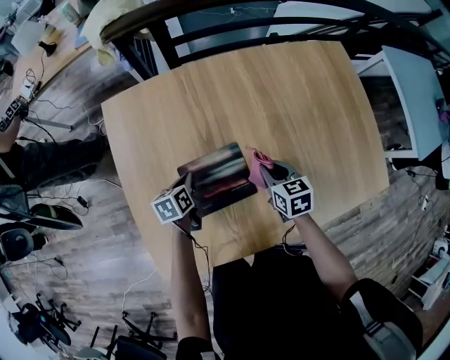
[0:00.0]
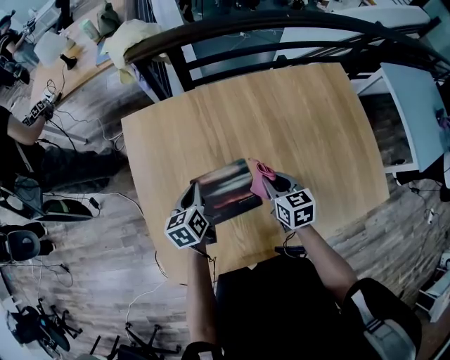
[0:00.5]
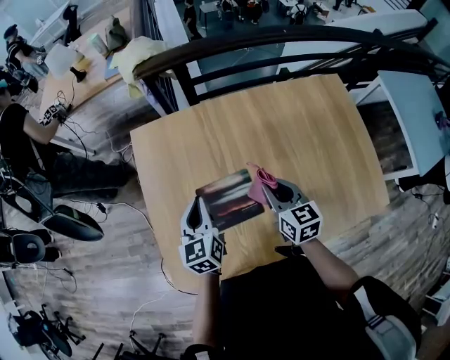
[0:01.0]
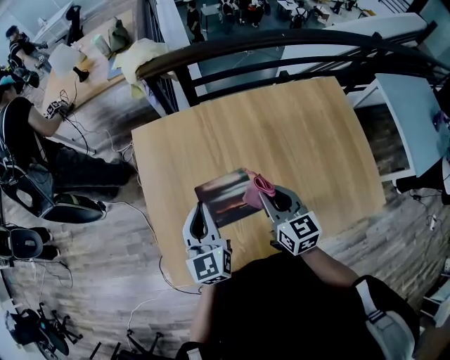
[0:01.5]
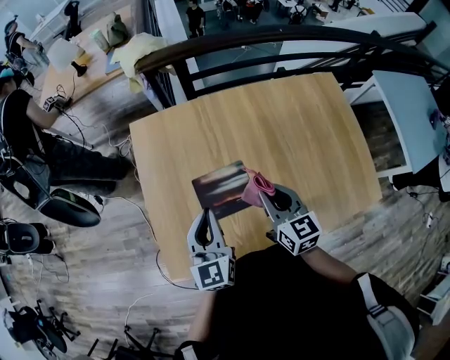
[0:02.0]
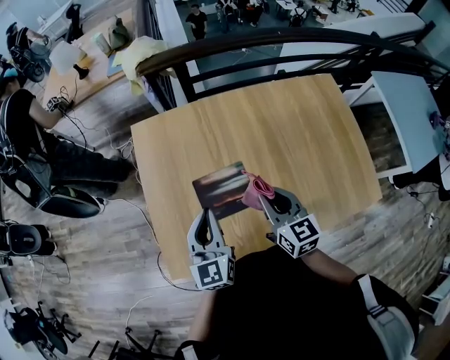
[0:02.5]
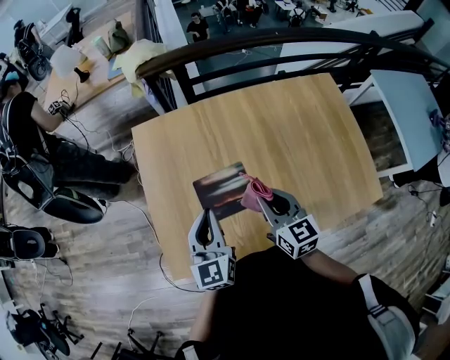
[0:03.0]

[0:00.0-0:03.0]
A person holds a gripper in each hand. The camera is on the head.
0:00.0 to 0:01.5: The right gripper moves upward, roughly 20 cm, and swivels some 20 degrees. Meanwhile the left gripper goes some 30 cm upward, and tilts its fingers some 40 degrees upward.
0:01.5 to 0:03.0: The left gripper moves backward, some 5 cm.

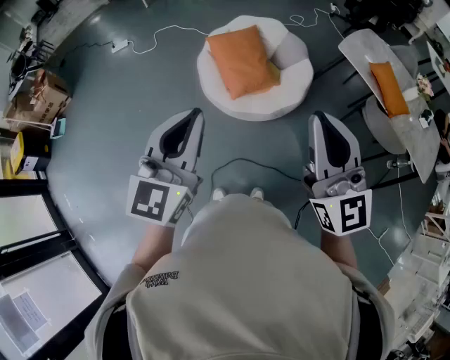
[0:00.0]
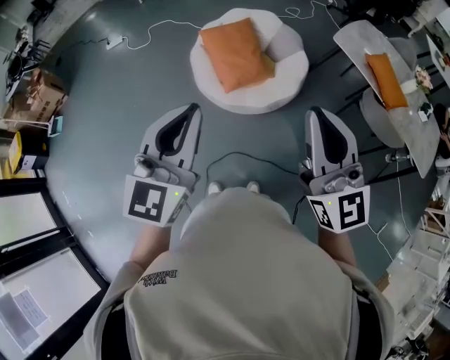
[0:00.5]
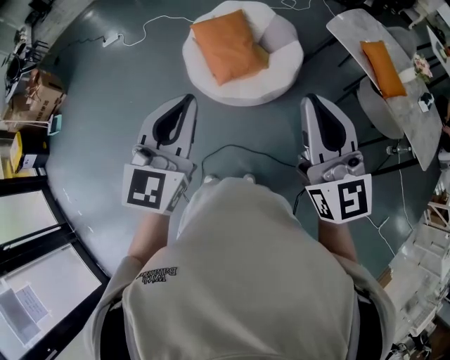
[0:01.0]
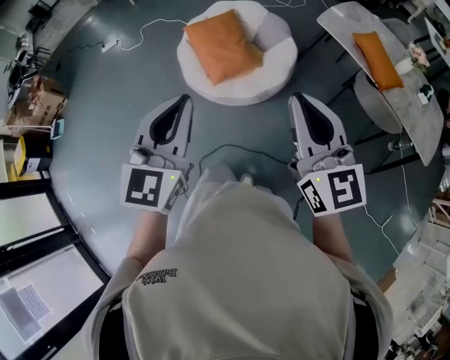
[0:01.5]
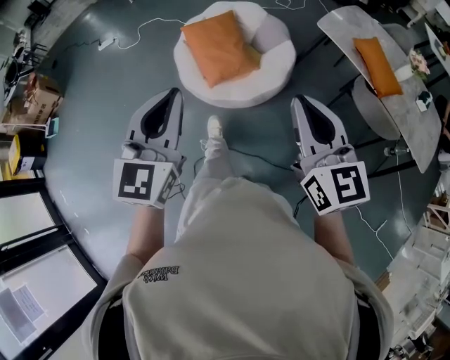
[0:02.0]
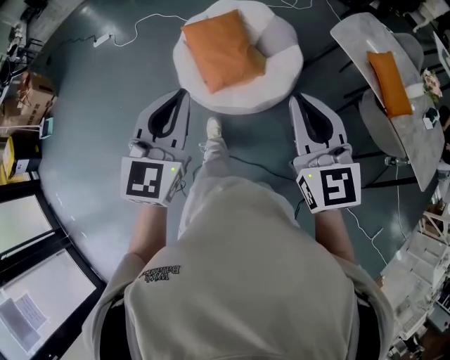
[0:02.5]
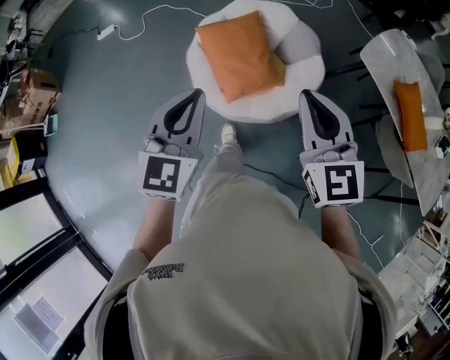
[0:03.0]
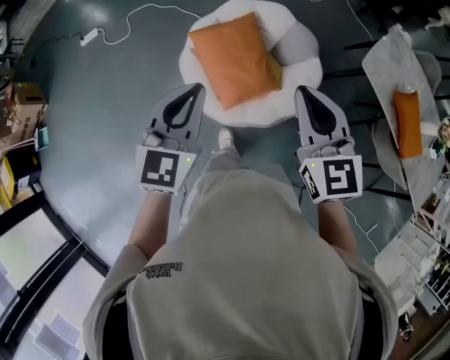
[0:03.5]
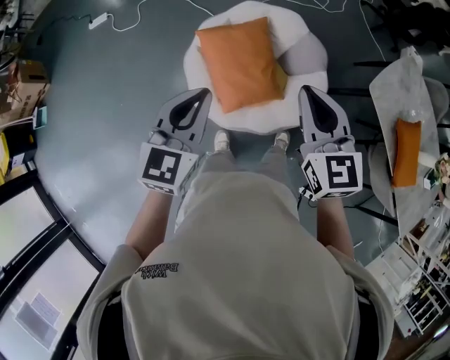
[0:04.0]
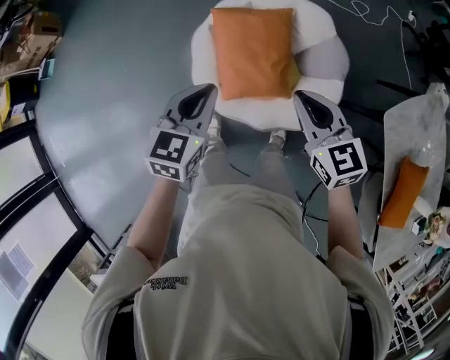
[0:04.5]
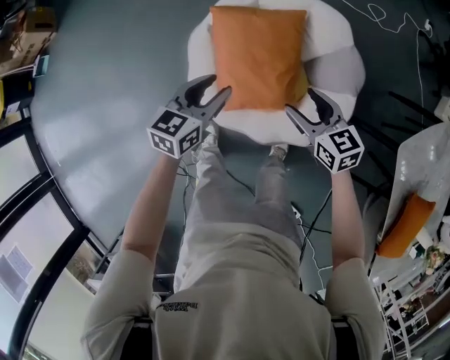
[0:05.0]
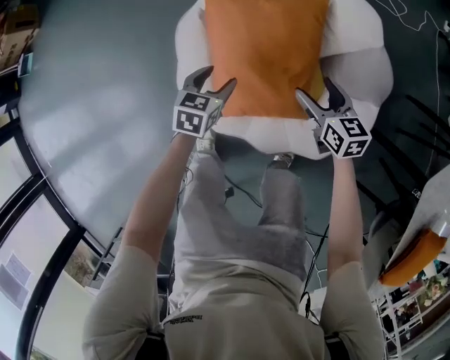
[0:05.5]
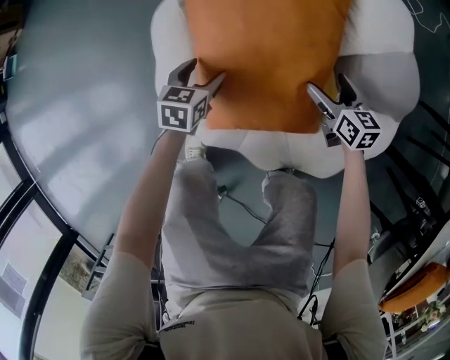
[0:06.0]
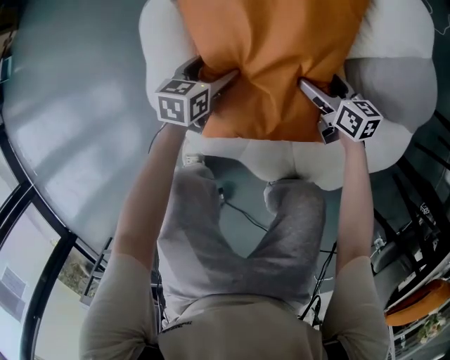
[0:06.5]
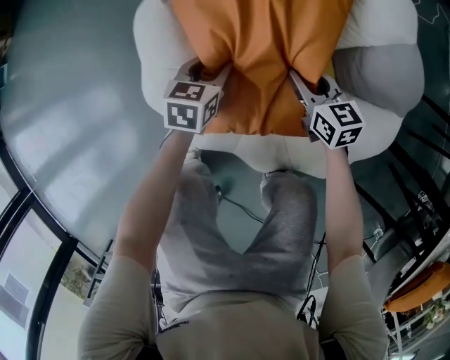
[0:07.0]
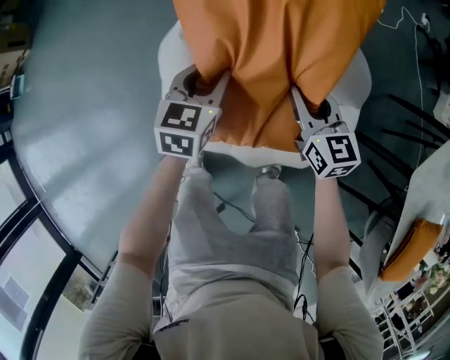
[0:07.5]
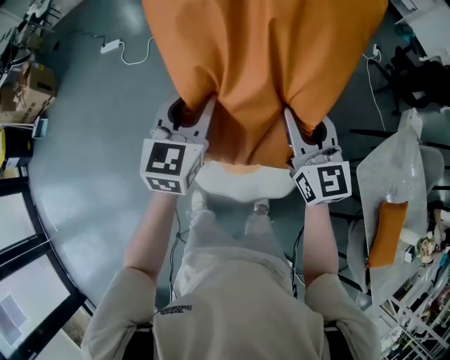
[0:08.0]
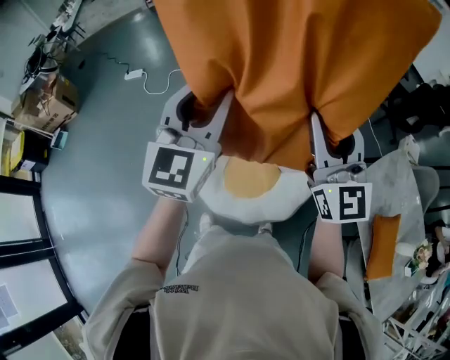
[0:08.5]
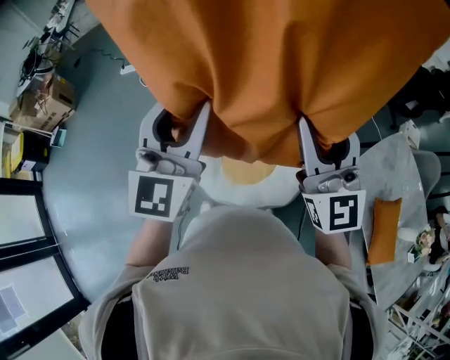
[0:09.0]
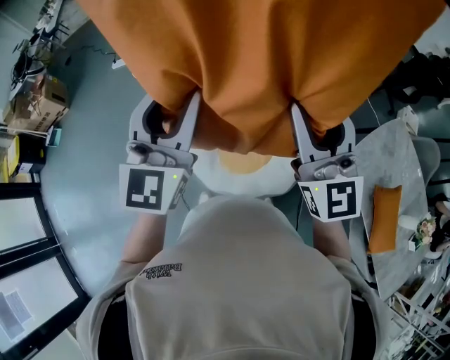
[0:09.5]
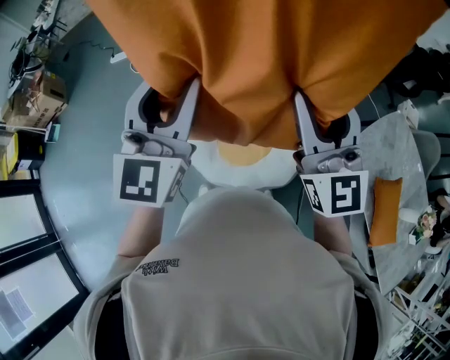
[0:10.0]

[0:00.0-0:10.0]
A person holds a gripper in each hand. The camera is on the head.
0:00.0 to 0:02.0: The left gripper shifts about 15 cm to the right, while the right gripper shifts about 20 cm to the right and downward.
0:02.0 to 0:04.0: The pair of grippers is taken forward, approximately 50 cm.
0:04.0 to 0:06.0: Both grippers travel together downward, approximately 70 cm. The left gripper tips its fingers downward by approximately 30 degrees, and opens up; the right gripper changes its angle by about 40 degrees, and opens its fingers.
0:06.0 to 0:08.0: Both grippers move upward, about 70 cm. The right gripper angles its fingers upward, by some 30 degrees, and closes its fingers. The left gripper tilts its fingers roughly 40 degrees upward, and closes its fingers.
0:08.0 to 0:10.0: The two grippers go roughly 25 cm upward and backward. The left gripper turns by some 20 degrees; the right gripper swivels about 20 degrees.

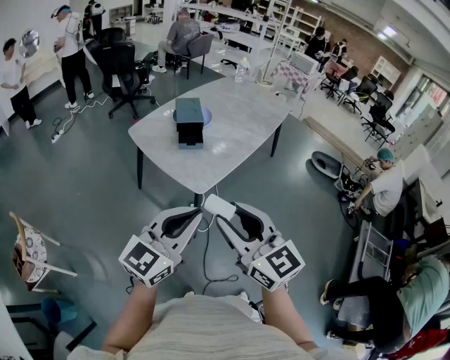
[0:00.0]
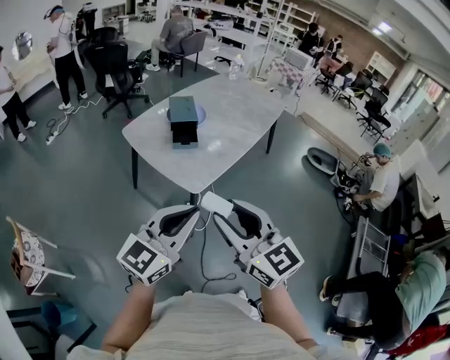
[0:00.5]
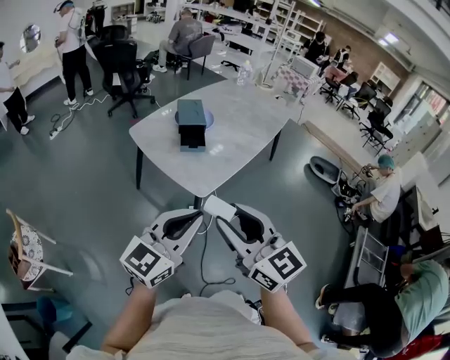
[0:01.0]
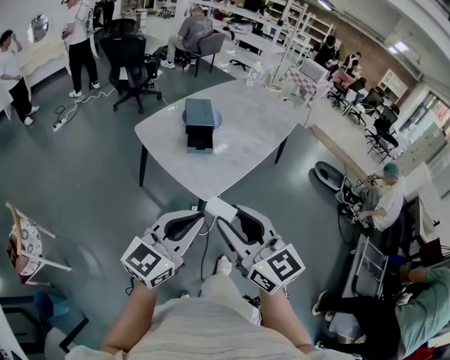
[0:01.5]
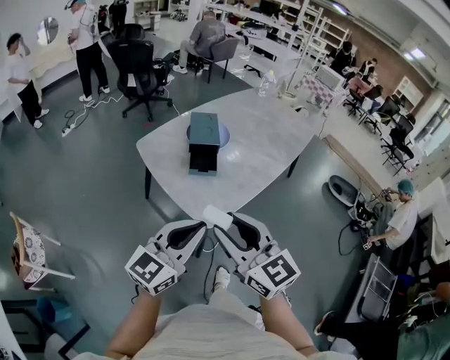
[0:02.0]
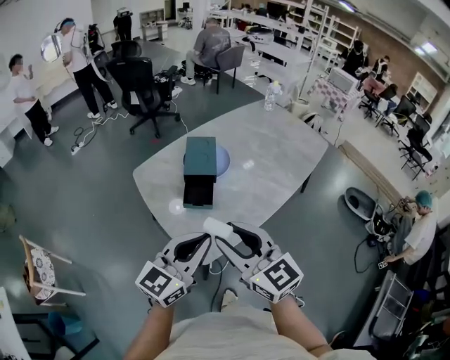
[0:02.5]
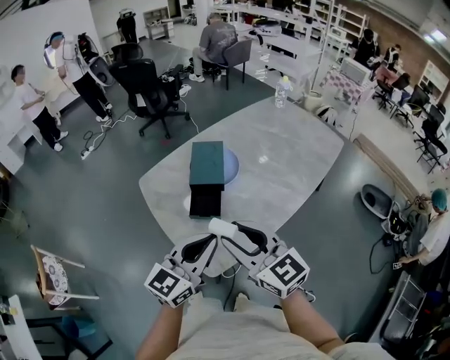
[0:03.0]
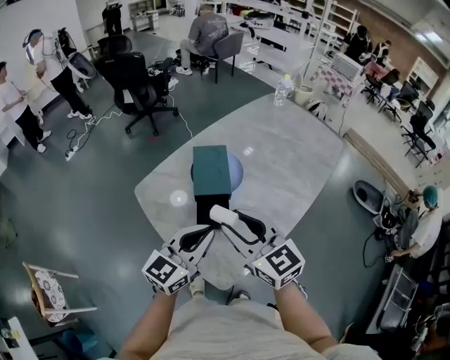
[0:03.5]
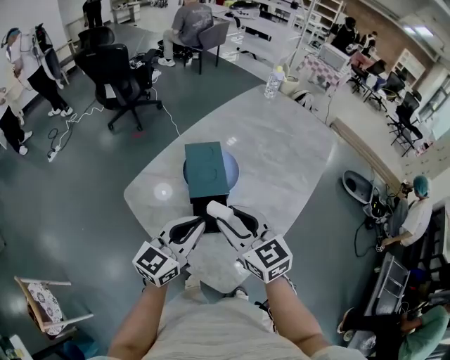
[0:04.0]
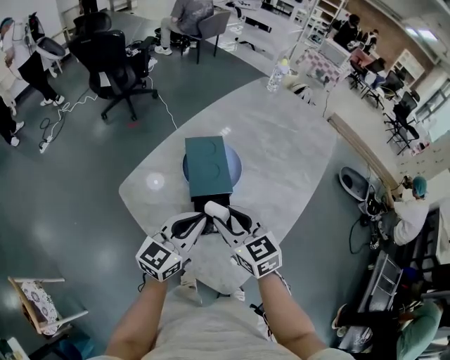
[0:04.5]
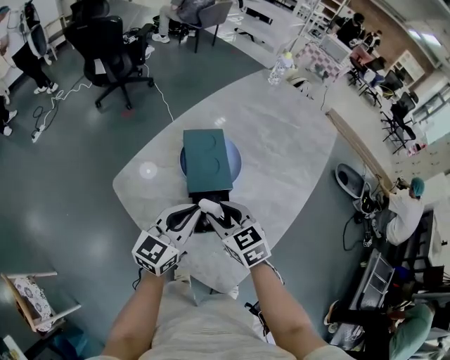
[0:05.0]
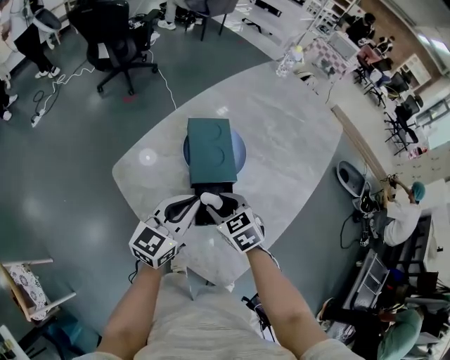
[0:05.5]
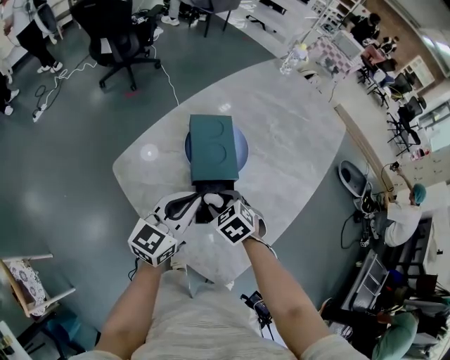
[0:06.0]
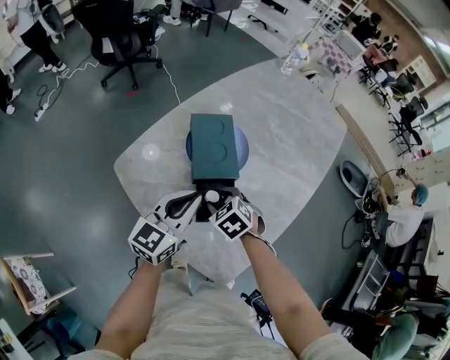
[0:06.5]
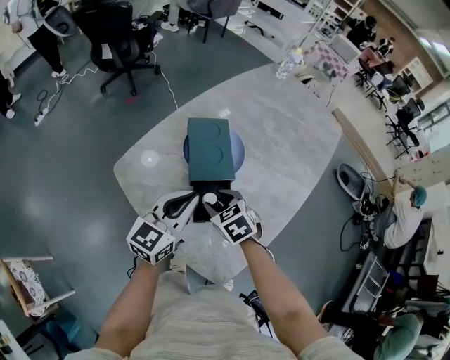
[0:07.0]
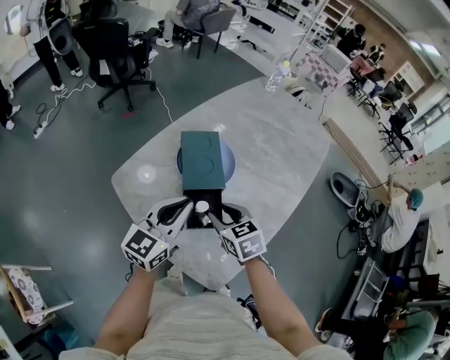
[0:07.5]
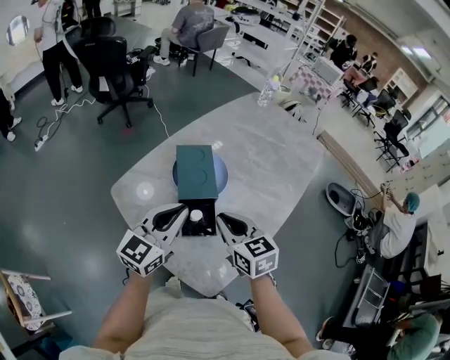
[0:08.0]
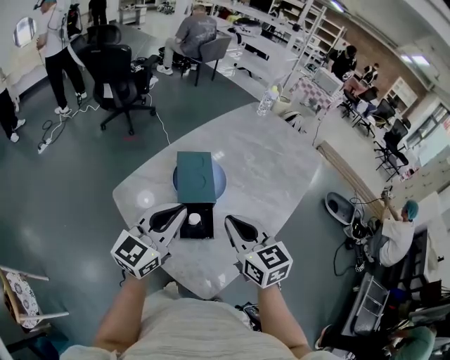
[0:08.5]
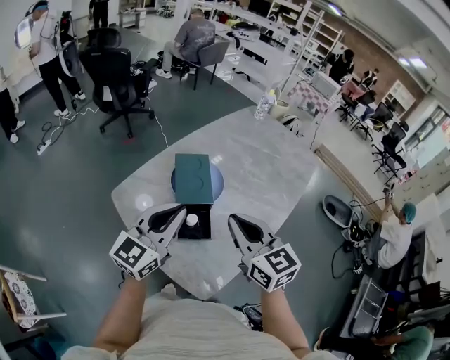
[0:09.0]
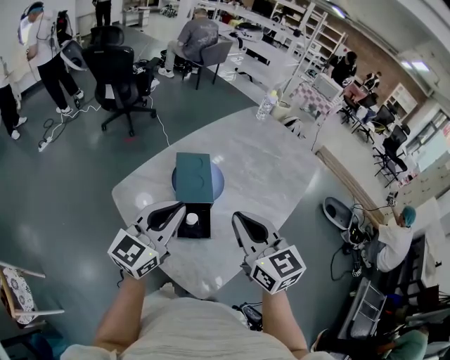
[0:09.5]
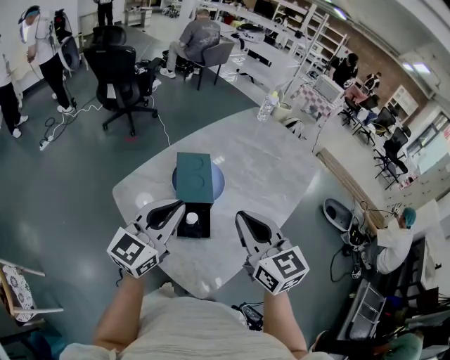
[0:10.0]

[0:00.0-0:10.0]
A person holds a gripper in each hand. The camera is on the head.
0:00.0 to 0:02.0: Both grippers travel together forward, roughly 15 cm.
0:02.0 to 0:04.0: The grippers both shift forward by approximately 35 cm.
0:04.0 to 0:06.0: The left gripper shifts approximately 10 cm downward and forward. The right gripper heads downward, covering approximately 20 cm, and angles its fingers downward, by approximately 40 degrees.
0:06.0 to 0:08.0: The right gripper shifts approximately 15 cm upward, points its fingers roughly 30 degrees further upward, and closes. The left gripper is displaced upward by roughly 10 cm.
0:08.0 to 0:10.0: The left gripper is displaced upward by roughly 5 cm. Meanwhile the right gripper moves upward, approximately 15 cm.

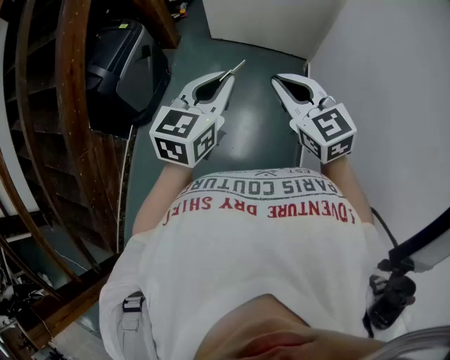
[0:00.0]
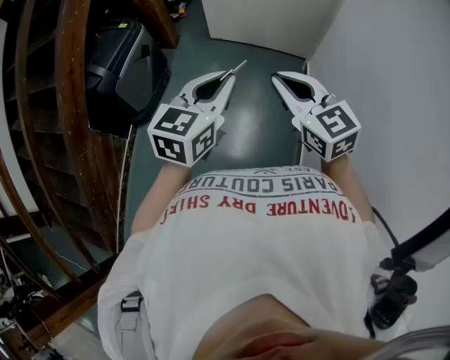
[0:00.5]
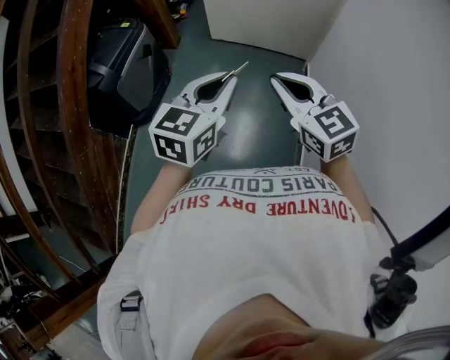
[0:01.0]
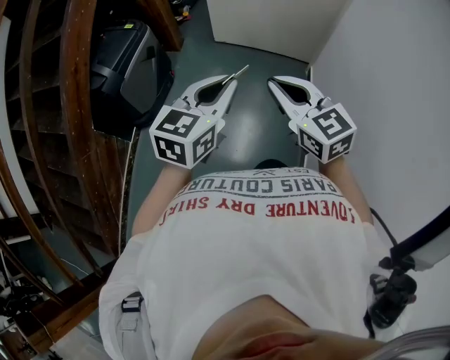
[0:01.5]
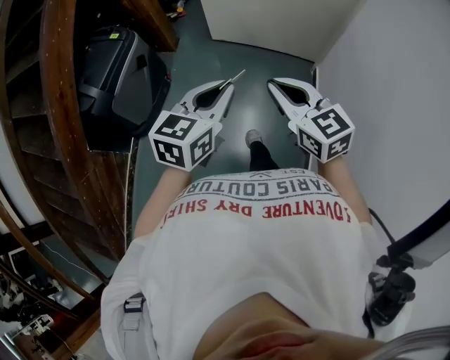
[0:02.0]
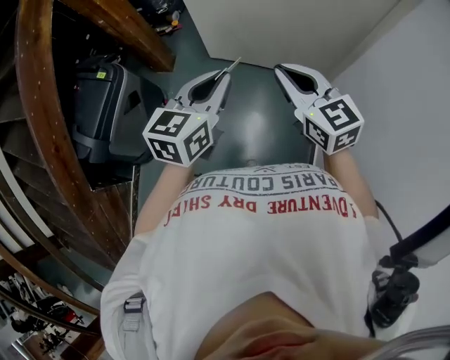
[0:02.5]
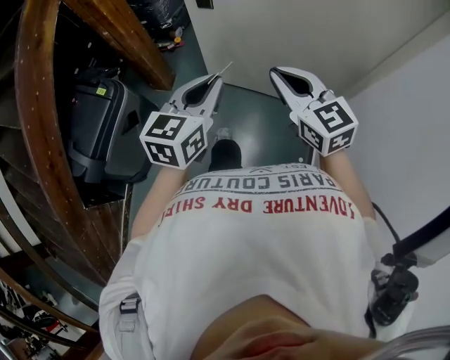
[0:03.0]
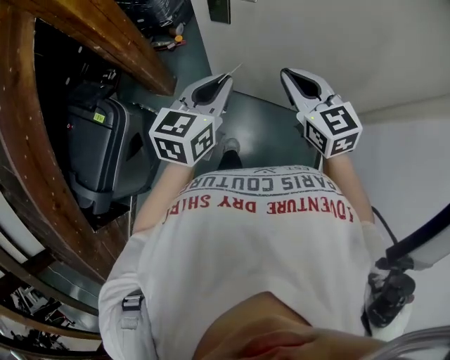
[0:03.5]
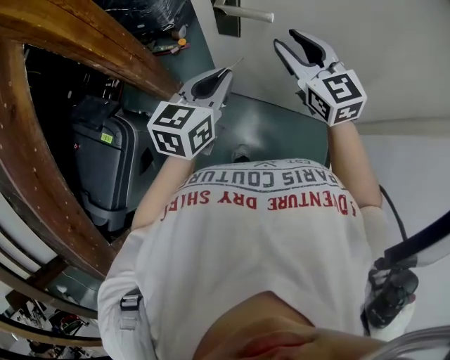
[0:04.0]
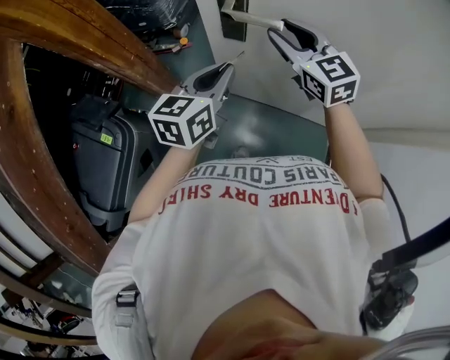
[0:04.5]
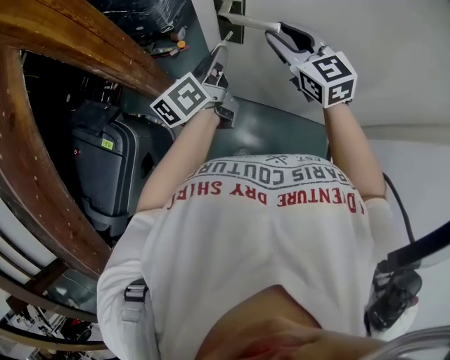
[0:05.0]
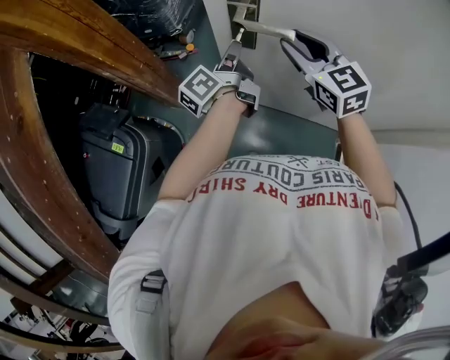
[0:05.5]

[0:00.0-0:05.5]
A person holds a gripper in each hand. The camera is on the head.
0:00.0 to 0:02.0: Both grippers travel together forward, approximately 15 cm.
0:02.0 to 0:03.5: The pair of grippers is taken forward, about 60 cm.
0:03.5 to 0:05.5: The grippers both shift forward by approximately 25 cm. The right gripper opens its fingers; the left gripper rolls counterclockwise, seen from behind, by approximately 60 degrees.
